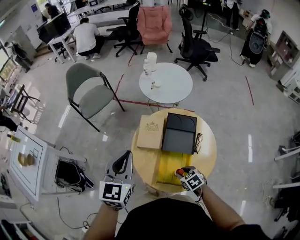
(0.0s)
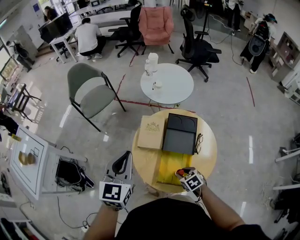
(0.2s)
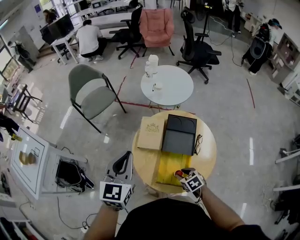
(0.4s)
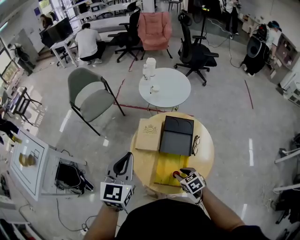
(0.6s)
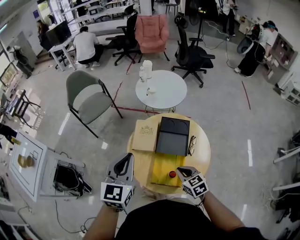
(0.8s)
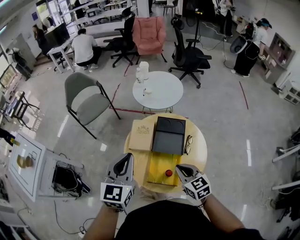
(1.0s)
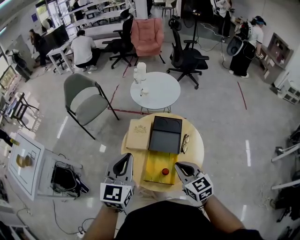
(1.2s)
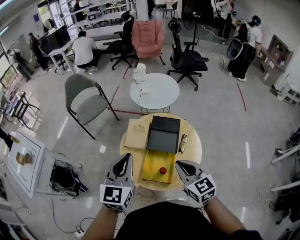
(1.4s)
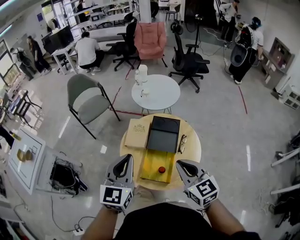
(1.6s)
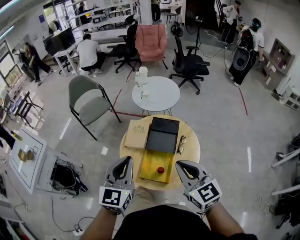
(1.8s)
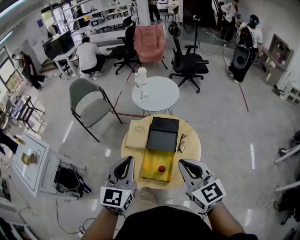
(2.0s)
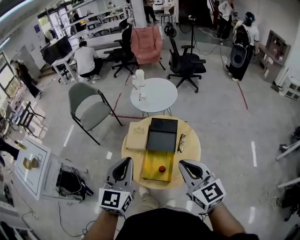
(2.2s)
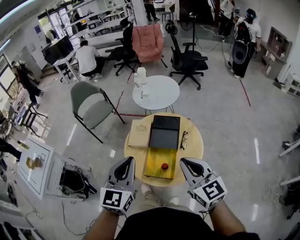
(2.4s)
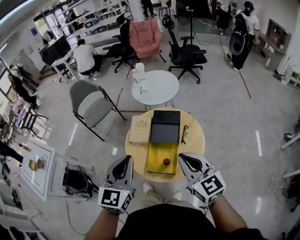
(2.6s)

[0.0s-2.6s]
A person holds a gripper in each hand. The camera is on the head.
0.0s to 1.2s: The right gripper is displaced upward by approximately 20 cm, tilts its fingers roughly 40 degrees upward, and closes, while the left gripper goes roughly 10 cm backward and to the right.
1.2s to 2.6s: The left gripper shifts approximately 10 cm backward; the right gripper heads upward and backward, covering some 15 cm.

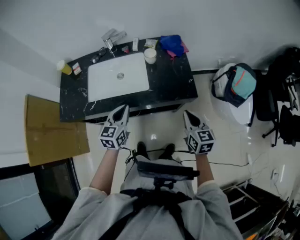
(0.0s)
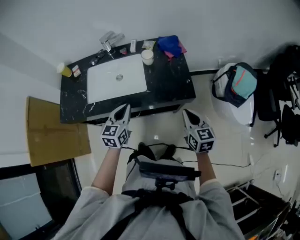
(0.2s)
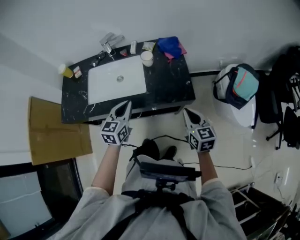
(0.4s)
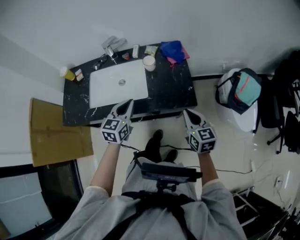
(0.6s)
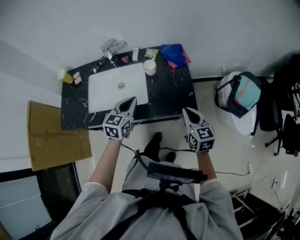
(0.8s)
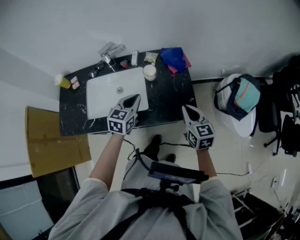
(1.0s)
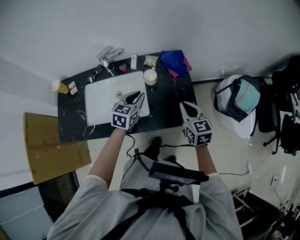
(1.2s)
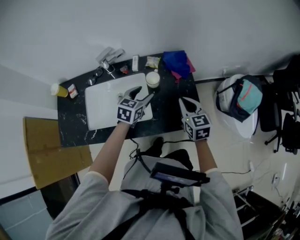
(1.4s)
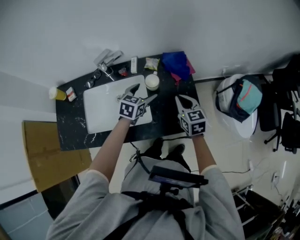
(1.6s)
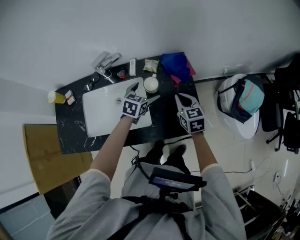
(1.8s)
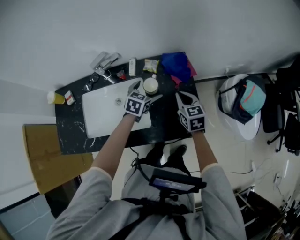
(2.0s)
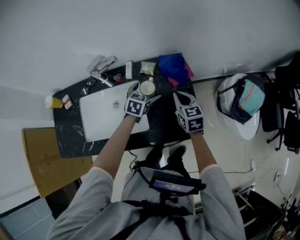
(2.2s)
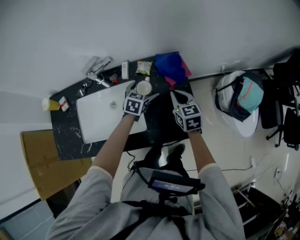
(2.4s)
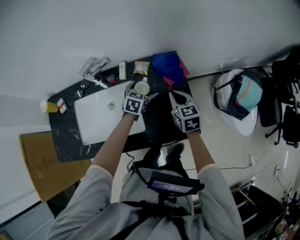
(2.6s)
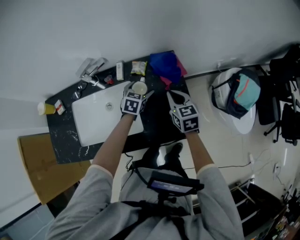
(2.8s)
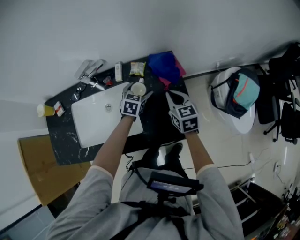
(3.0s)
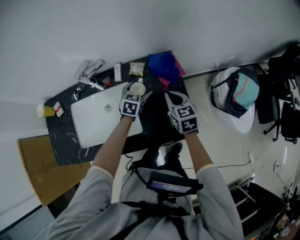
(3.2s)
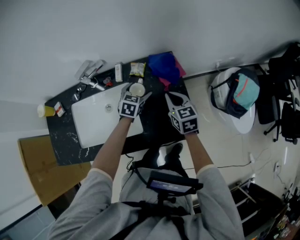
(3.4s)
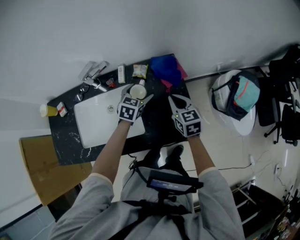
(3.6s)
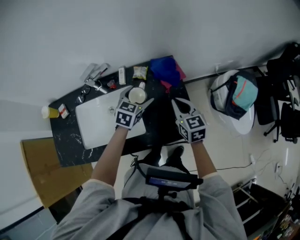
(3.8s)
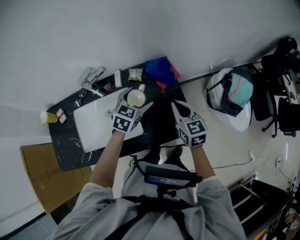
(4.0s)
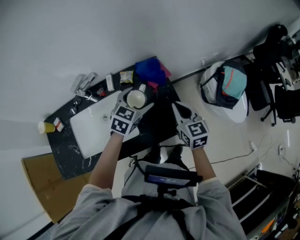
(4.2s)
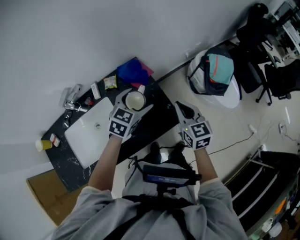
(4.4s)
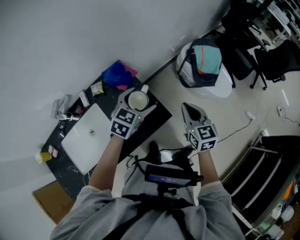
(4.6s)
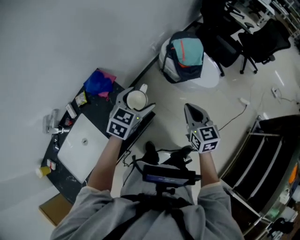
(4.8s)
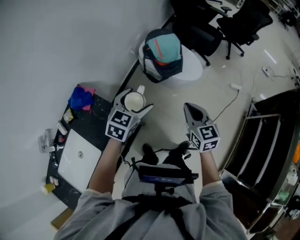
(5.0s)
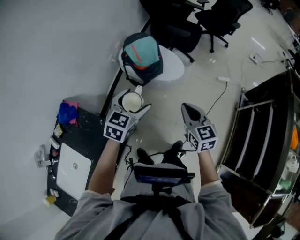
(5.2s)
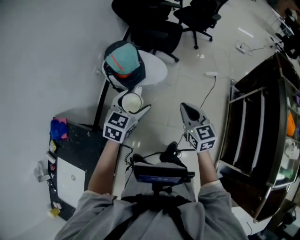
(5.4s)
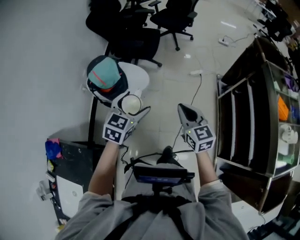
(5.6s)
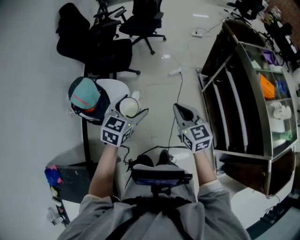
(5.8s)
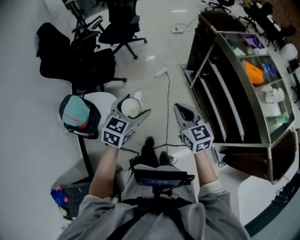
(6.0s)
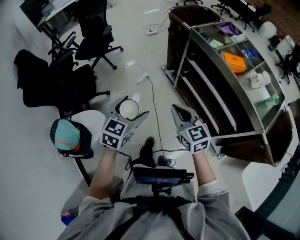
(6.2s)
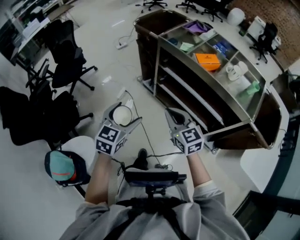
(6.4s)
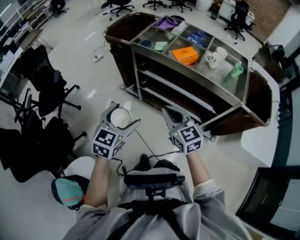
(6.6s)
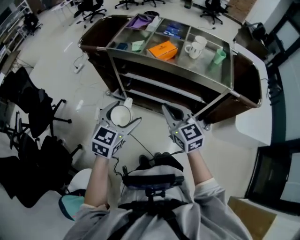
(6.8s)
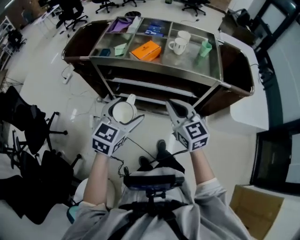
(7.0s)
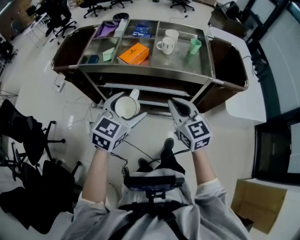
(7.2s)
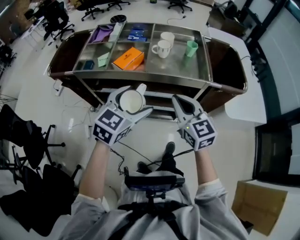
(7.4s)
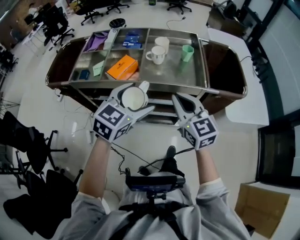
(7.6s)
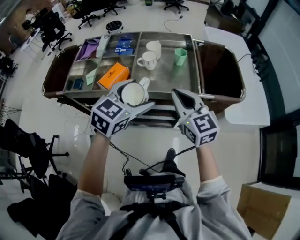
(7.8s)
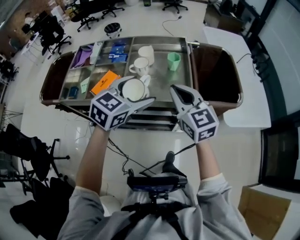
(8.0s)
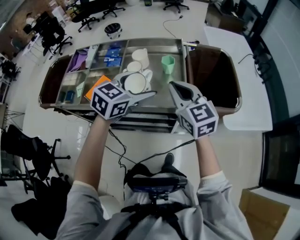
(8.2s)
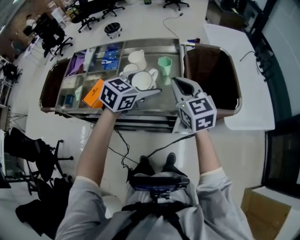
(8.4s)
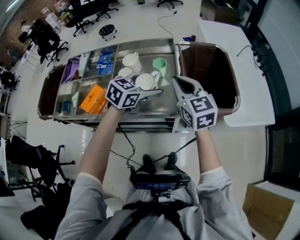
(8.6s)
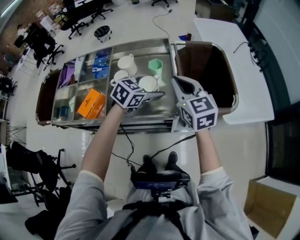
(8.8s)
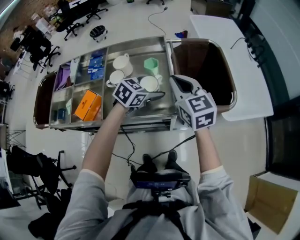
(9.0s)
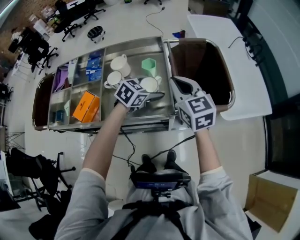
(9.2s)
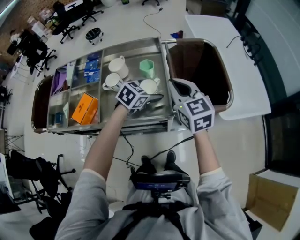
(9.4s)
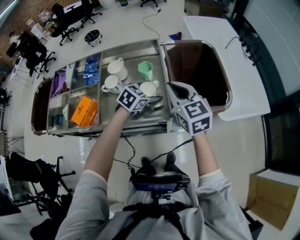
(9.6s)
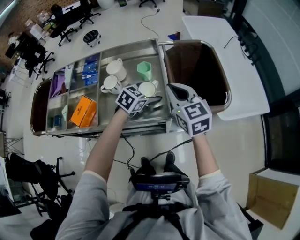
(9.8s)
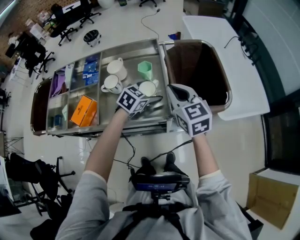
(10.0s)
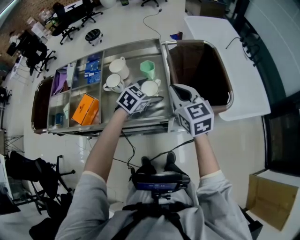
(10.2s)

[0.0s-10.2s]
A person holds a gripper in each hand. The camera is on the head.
0.0s to 1.4s: Both grippers travel together forward, about 25 cm. The left gripper opens its fingers.
1.4s to 3.0s: The left gripper travels forward and downward by about 15 cm. The right gripper goes about 10 cm forward.
3.0s to 4.4s: The left gripper shifts some 20 cm upward, to the right and backward, and rotates some 30 degrees. Meanwhile the right gripper shifts some 20 cm to the right, backward and upward, and swivels some 20 degrees.
4.4s to 5.8s: The pair of grippers is taken roughly 70 cm. The left gripper turns by approximately 60 degrees, while the right gripper turns by approximately 60 degrees.
5.8s to 7.2s: The left gripper moves some 50 cm, and rotates about 80 degrees. The right gripper changes place by roughly 40 cm, and changes its angle by roughly 70 degrees.
7.2s to 8.8s: Both grippers move forward and to the right, about 40 cm. The left gripper turns by approximately 30 degrees.
8.8s to 10.2s: The left gripper ends up roughly 5 cm from where it was.

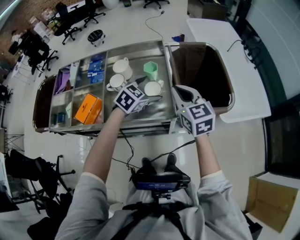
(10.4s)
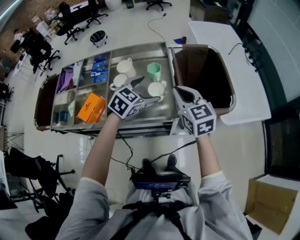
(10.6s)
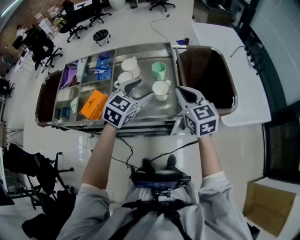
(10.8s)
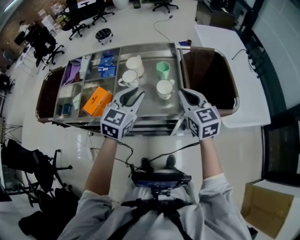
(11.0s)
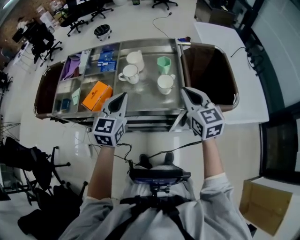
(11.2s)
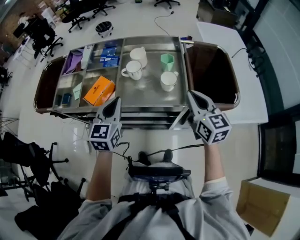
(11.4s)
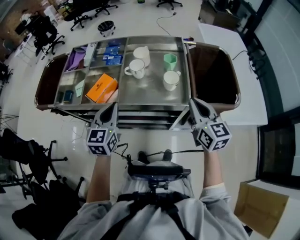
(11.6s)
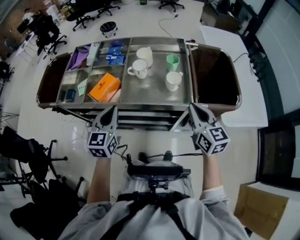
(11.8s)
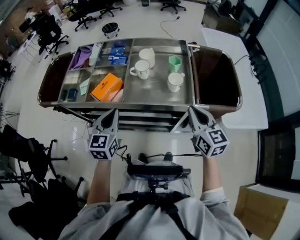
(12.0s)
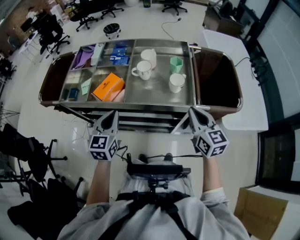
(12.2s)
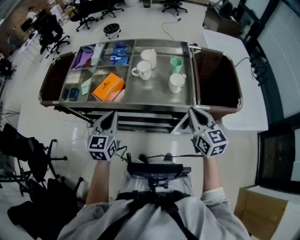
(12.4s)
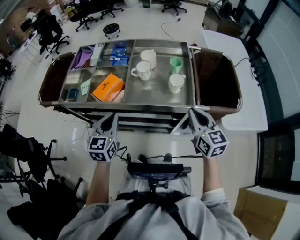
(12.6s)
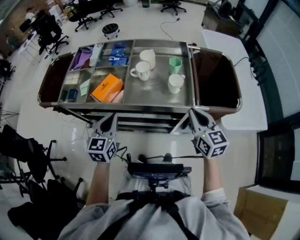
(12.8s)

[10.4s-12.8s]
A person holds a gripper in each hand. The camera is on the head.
10.4s to 11.6s: The right gripper is displaced backward by approximately 10 cm. The left gripper goes approximately 30 cm to the left and backward, changes its angle by some 50 degrees, and closes up.
11.6s to 12.8s: The left gripper shifts by approximately 5 cm.

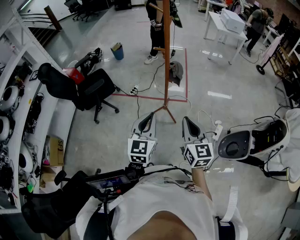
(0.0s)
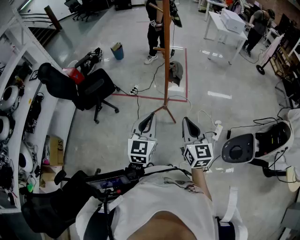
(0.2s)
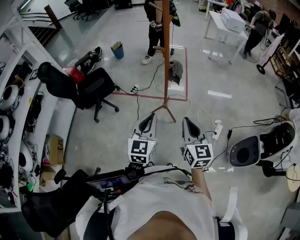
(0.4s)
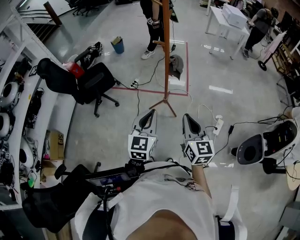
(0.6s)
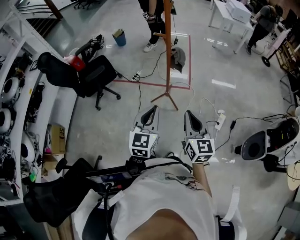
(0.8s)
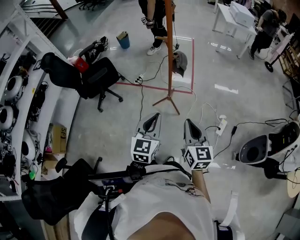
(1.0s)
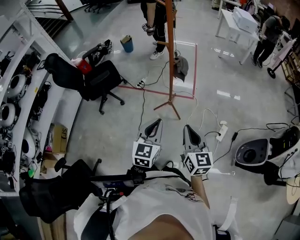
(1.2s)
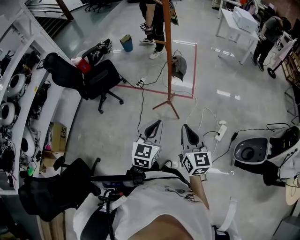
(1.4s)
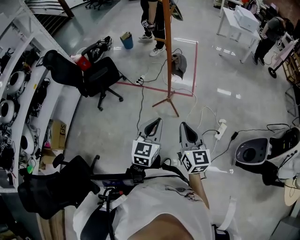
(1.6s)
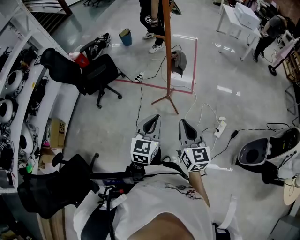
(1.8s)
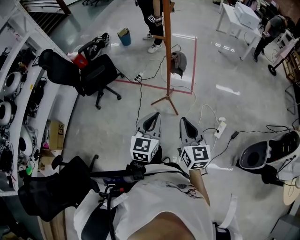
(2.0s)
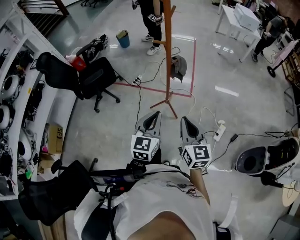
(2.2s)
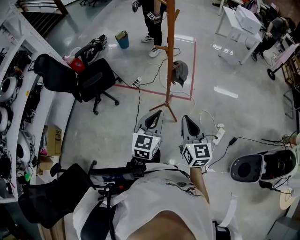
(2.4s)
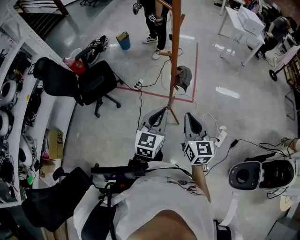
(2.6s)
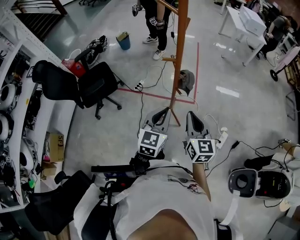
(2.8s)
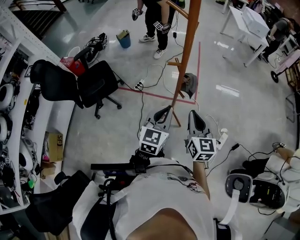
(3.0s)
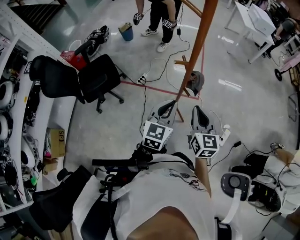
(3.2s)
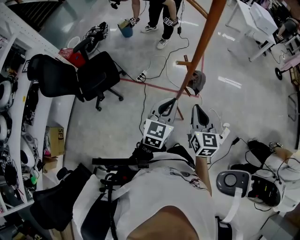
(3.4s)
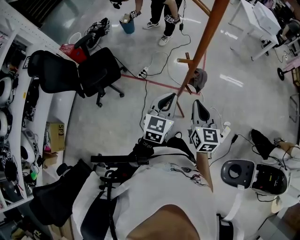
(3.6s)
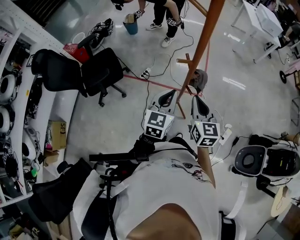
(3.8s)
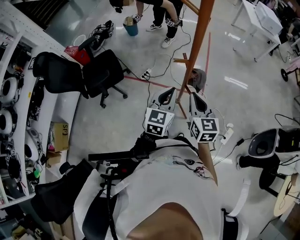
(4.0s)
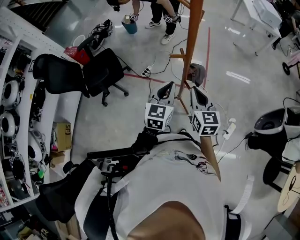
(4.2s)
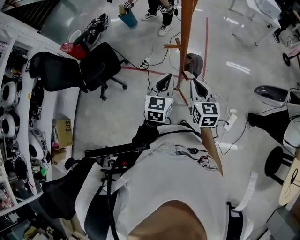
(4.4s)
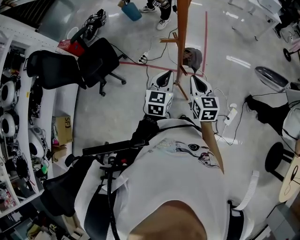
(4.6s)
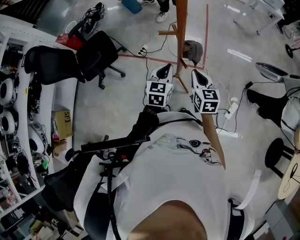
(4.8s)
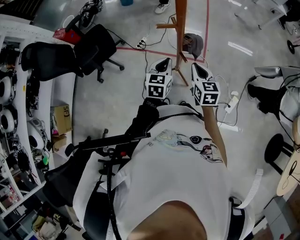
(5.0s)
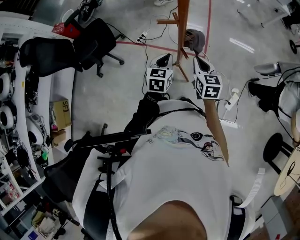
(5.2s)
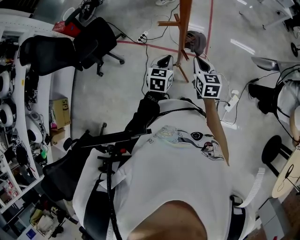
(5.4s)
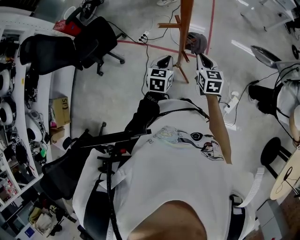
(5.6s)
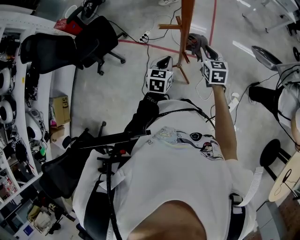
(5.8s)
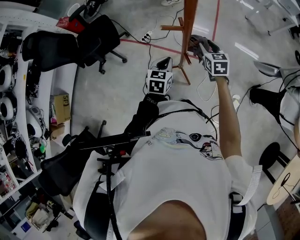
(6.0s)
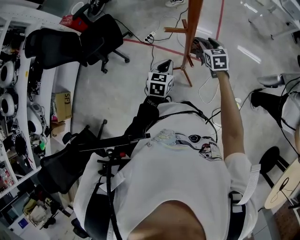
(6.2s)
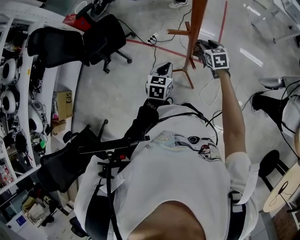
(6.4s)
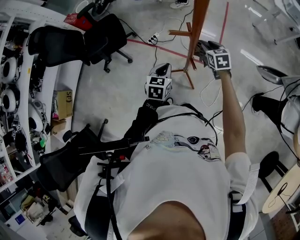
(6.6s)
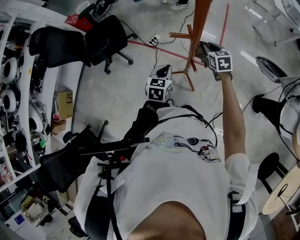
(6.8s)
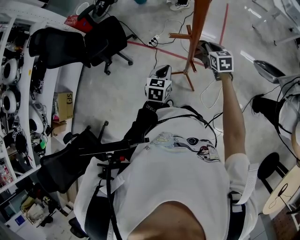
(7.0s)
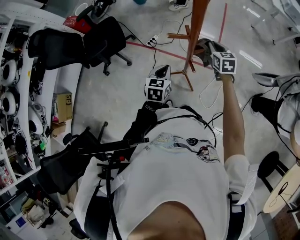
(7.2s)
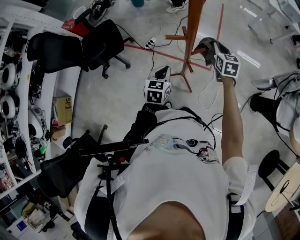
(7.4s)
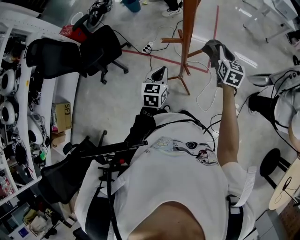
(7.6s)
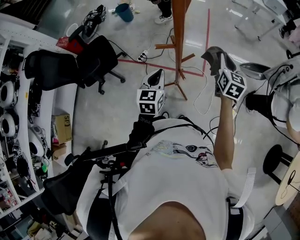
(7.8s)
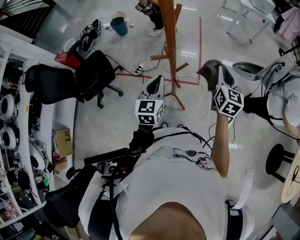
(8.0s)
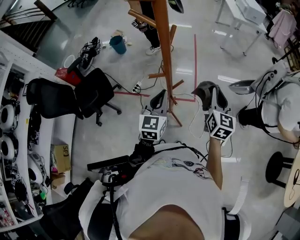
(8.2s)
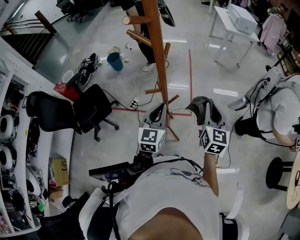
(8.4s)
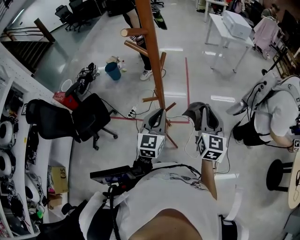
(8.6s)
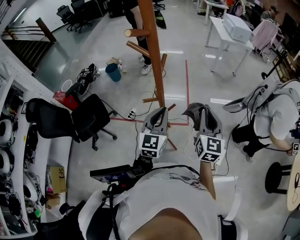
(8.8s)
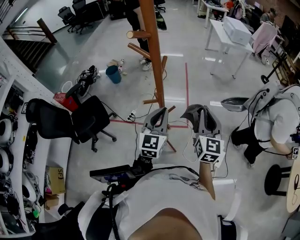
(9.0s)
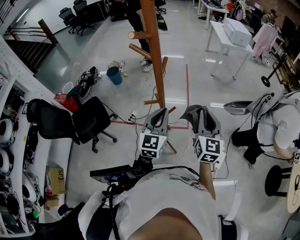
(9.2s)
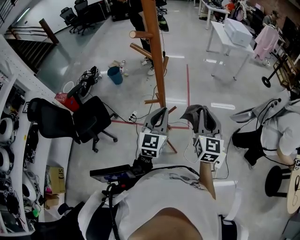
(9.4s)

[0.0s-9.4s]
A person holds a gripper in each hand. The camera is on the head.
0.0s to 1.6s: The right gripper moves about 5 cm; the left gripper is displaced to the right and downward by roughly 10 cm.
1.6s to 3.2s: Both grippers move forward, roughly 30 cm.
3.2s to 4.8s: Both grippers move downward and forward, some 15 cm.
4.8s to 6.2s: The right gripper heads forward, covering roughly 15 cm, and opens its fingers. The left gripper heads downward, covering roughly 5 cm.
6.2s to 7.8s: The right gripper shifts some 20 cm upward and to the right, swivels roughly 30 degrees, and closes, while the left gripper travels upward by roughly 10 cm.
7.8s to 9.4s: The left gripper goes about 20 cm upward and to the right, and rotates about 30 degrees; the right gripper shifts some 20 cm upward and backward.
